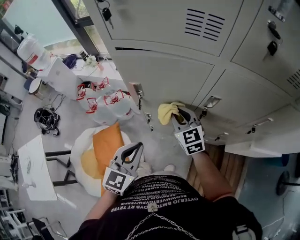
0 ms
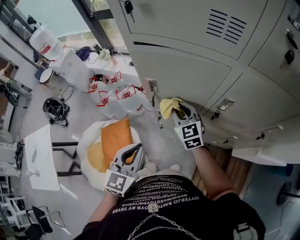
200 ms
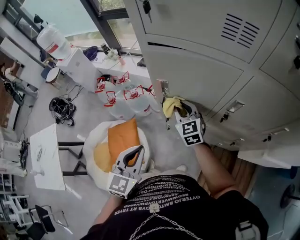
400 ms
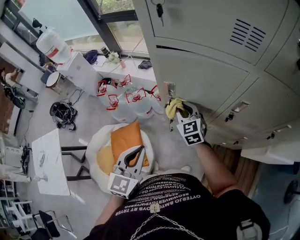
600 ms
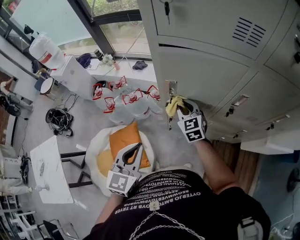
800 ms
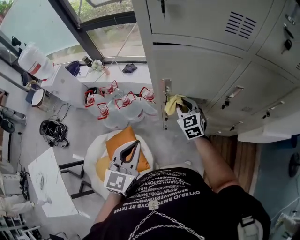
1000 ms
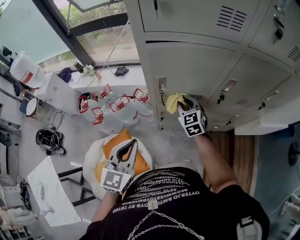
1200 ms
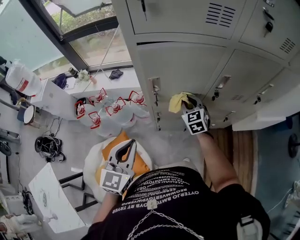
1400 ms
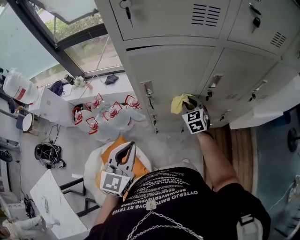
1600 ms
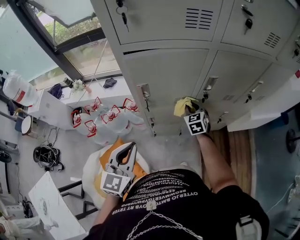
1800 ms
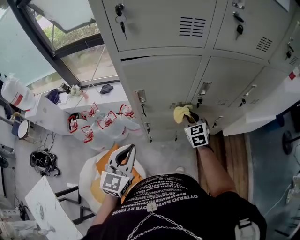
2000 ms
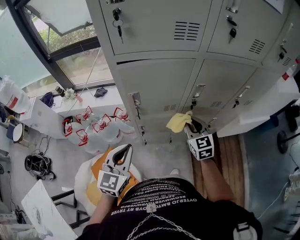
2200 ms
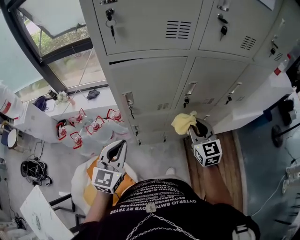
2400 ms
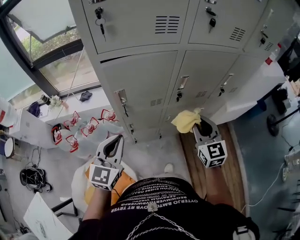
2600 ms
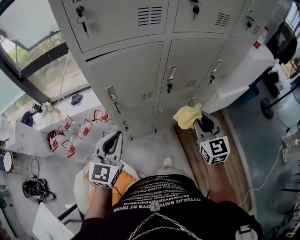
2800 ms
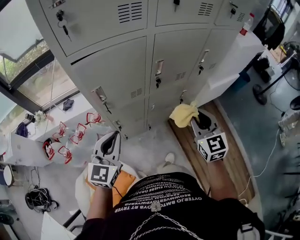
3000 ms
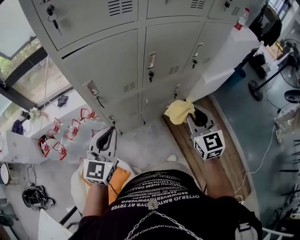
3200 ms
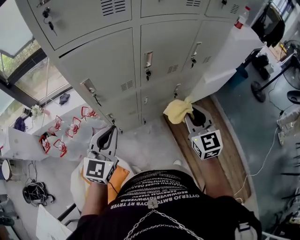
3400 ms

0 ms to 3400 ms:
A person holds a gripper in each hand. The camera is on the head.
0 ms to 1600 ms: The left gripper changes place by approximately 15 cm. The right gripper heads downward, covering approximately 5 cm, and swivels about 30 degrees.
1600 ms to 3400 ms: The left gripper goes about 10 cm to the right, and rotates roughly 20 degrees. The right gripper is displaced backward, to the right and upward by about 35 cm, and changes its angle by roughly 20 degrees.

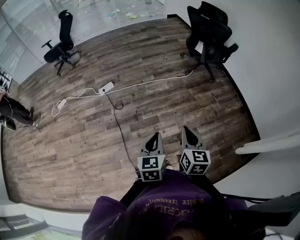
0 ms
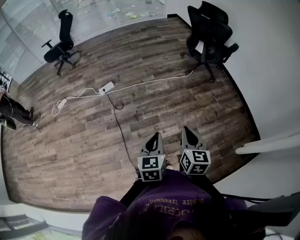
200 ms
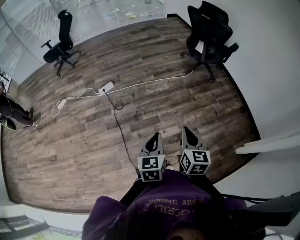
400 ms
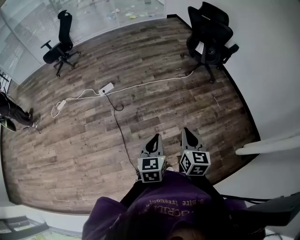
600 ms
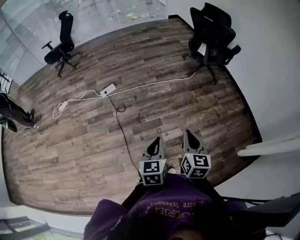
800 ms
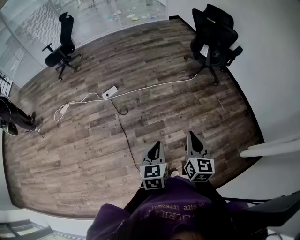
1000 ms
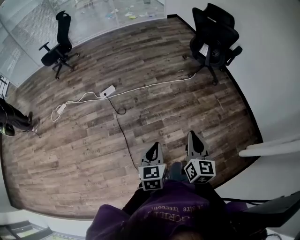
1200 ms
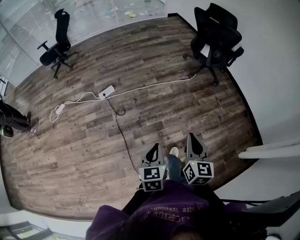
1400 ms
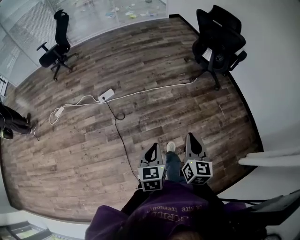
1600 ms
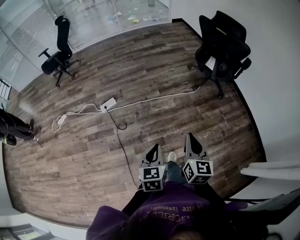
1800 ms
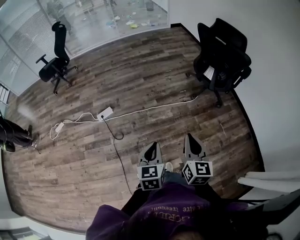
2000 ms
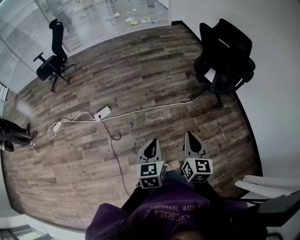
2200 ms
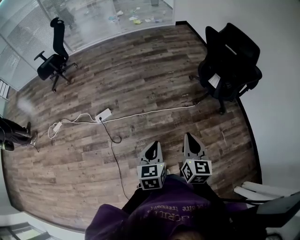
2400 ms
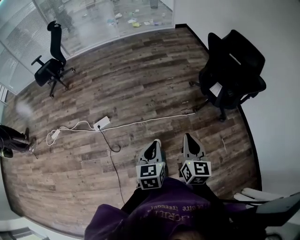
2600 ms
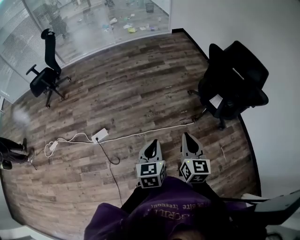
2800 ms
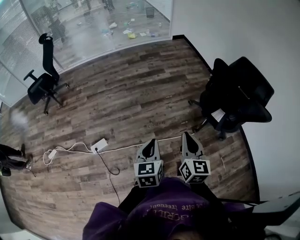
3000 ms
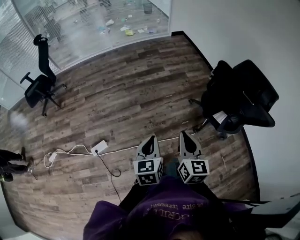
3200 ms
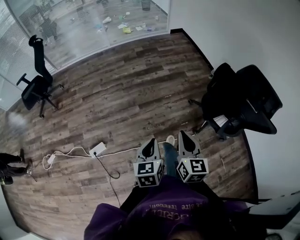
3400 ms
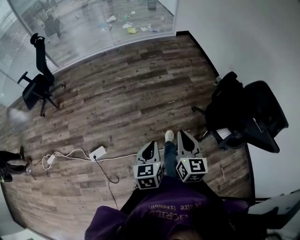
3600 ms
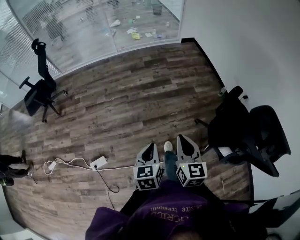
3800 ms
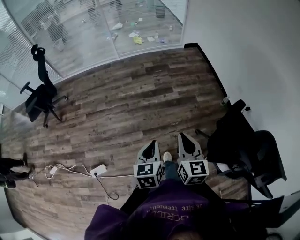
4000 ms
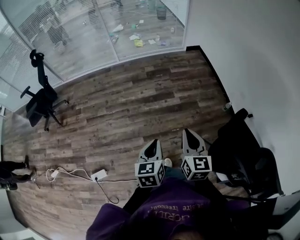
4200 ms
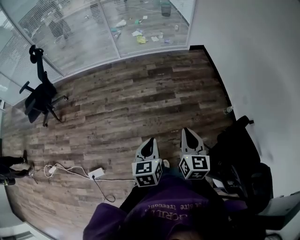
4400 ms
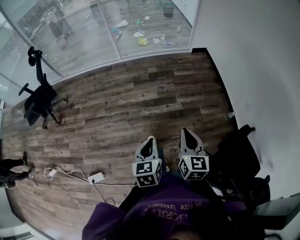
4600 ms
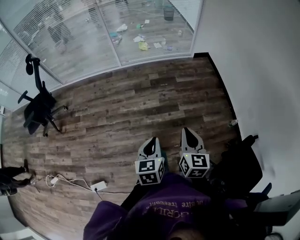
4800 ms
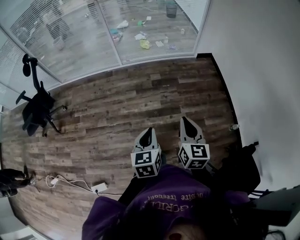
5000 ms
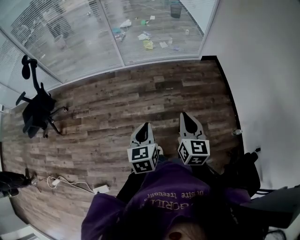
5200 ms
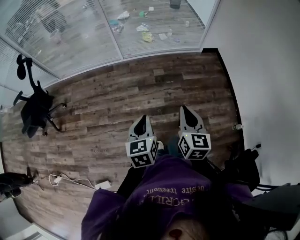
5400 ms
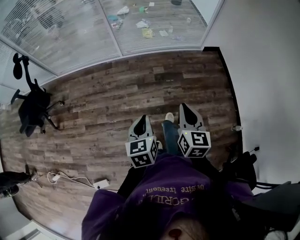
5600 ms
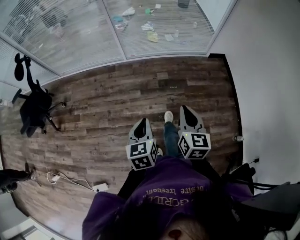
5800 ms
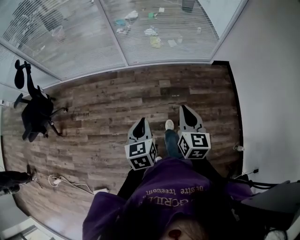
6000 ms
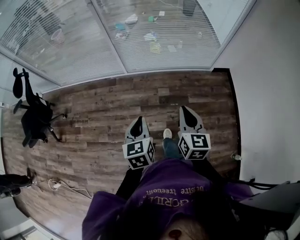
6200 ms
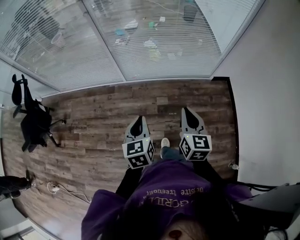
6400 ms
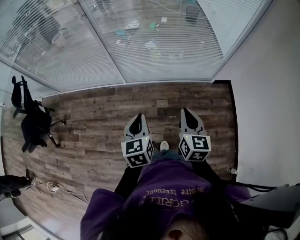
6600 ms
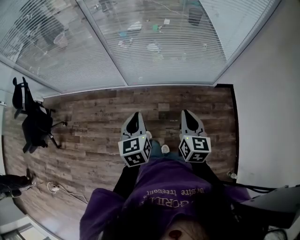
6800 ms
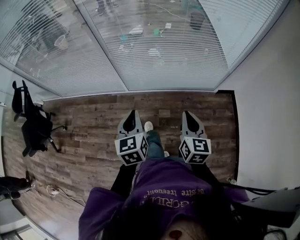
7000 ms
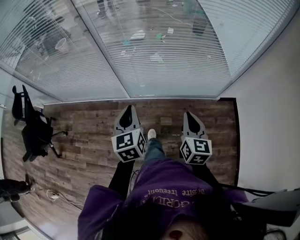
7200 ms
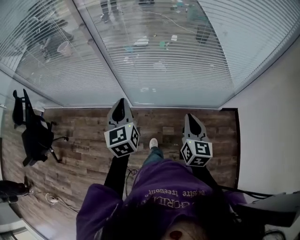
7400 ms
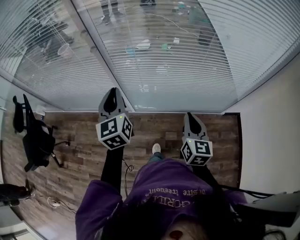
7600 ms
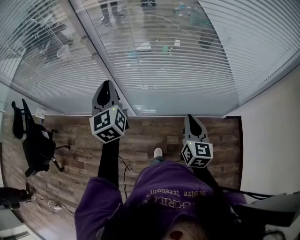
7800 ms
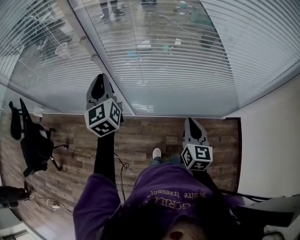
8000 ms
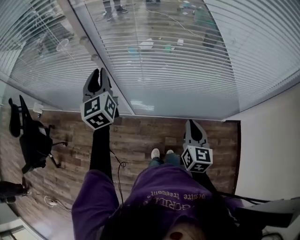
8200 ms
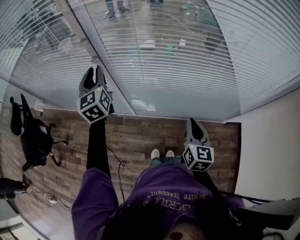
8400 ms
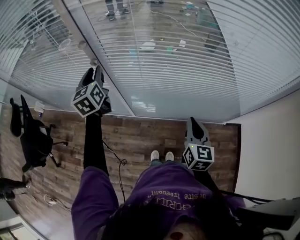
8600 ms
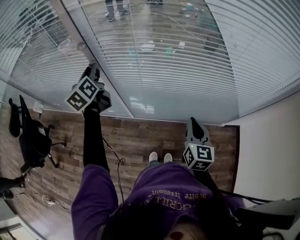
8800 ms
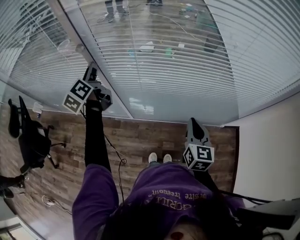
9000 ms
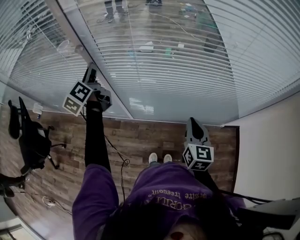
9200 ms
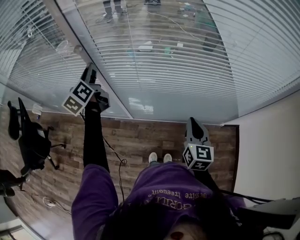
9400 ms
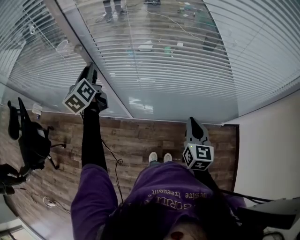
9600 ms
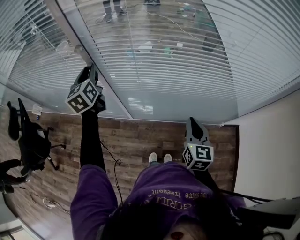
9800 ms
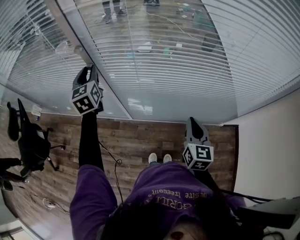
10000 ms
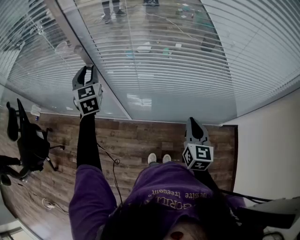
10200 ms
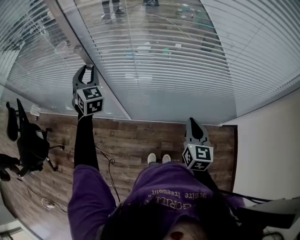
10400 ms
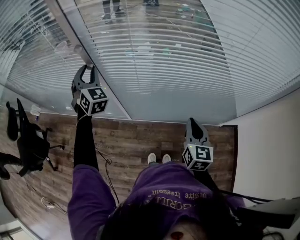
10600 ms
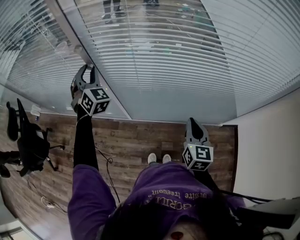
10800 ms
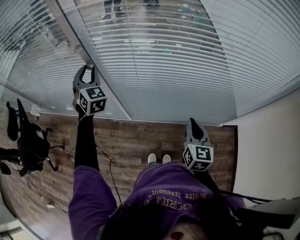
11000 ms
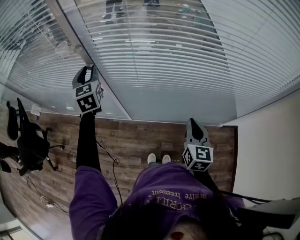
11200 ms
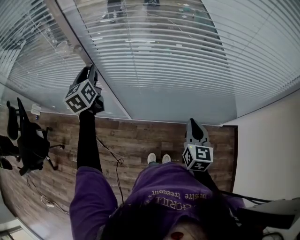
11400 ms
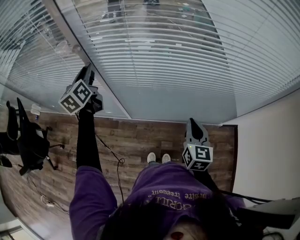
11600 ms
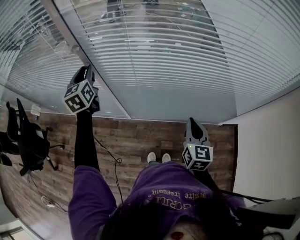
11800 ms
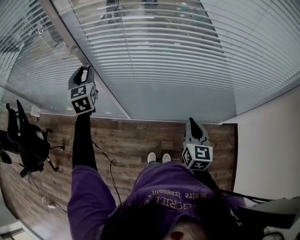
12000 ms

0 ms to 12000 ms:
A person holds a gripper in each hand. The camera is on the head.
0 ms to 1600 ms: The right gripper shifts some 15 cm forward. The left gripper is displaced forward, to the left and downward by approximately 15 cm.
1600 ms to 3000 ms: The pair of grippers is taken forward, approximately 60 cm.
3000 ms to 4400 ms: Both grippers are carried forward, some 60 cm.
4400 ms to 6000 ms: The pair of grippers is taken forward, about 60 cm.
6000 ms to 7600 ms: The pair of grippers is taken forward, some 50 cm. The left gripper swivels some 30 degrees.
7600 ms to 9000 ms: The right gripper is displaced forward by some 10 cm; the left gripper moves forward and to the left, approximately 25 cm, rotates some 40 degrees, and opens up.
9000 ms to 10400 ms: The left gripper rotates around the line of its fingers by roughly 70 degrees, clockwise from behind.

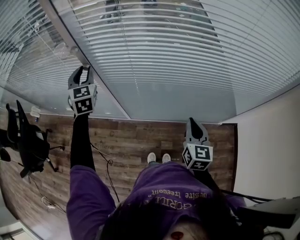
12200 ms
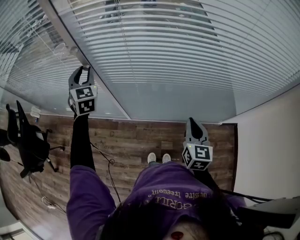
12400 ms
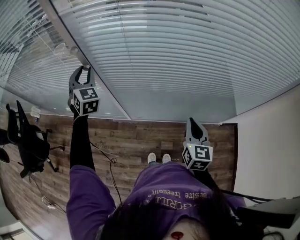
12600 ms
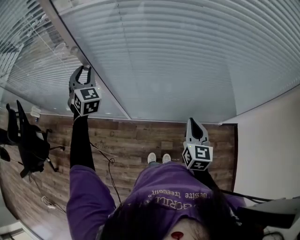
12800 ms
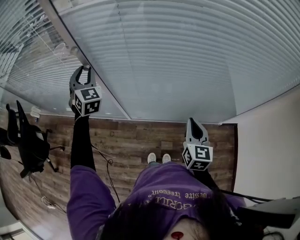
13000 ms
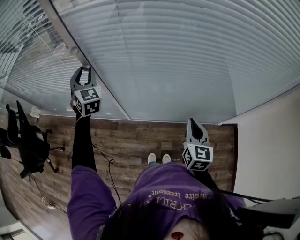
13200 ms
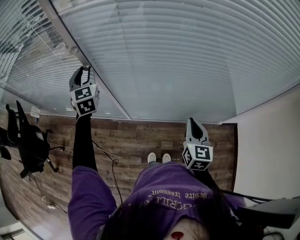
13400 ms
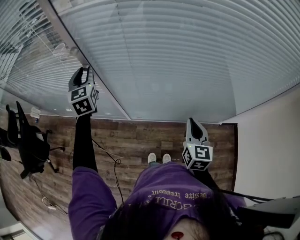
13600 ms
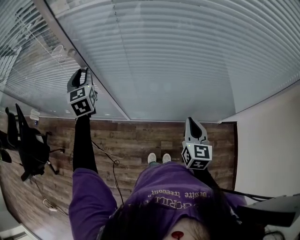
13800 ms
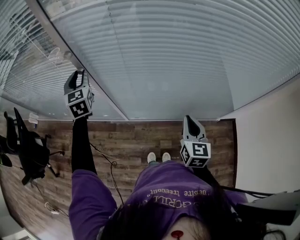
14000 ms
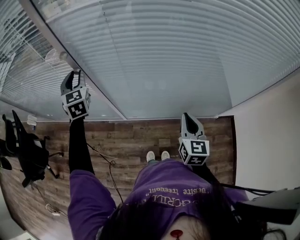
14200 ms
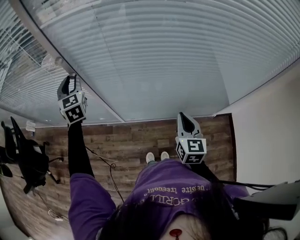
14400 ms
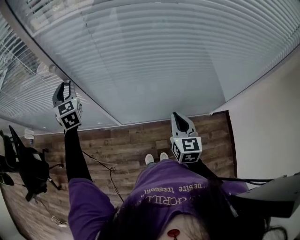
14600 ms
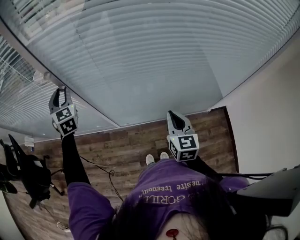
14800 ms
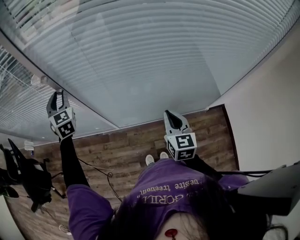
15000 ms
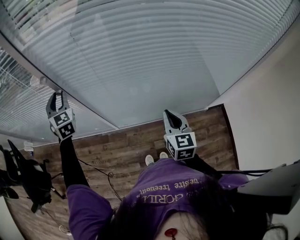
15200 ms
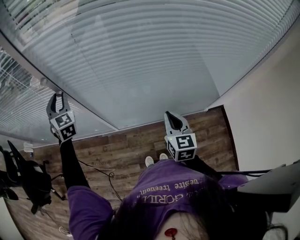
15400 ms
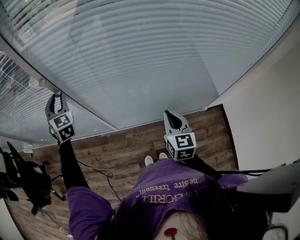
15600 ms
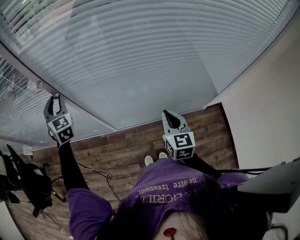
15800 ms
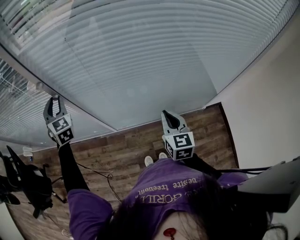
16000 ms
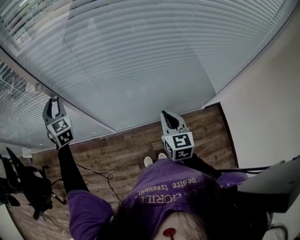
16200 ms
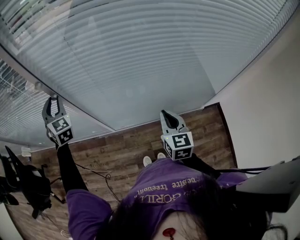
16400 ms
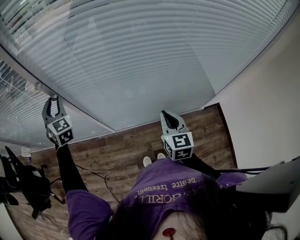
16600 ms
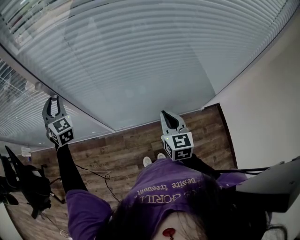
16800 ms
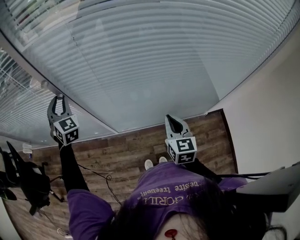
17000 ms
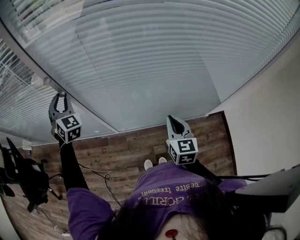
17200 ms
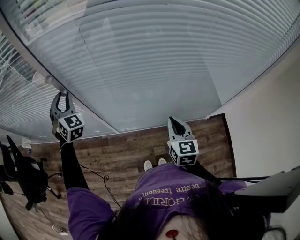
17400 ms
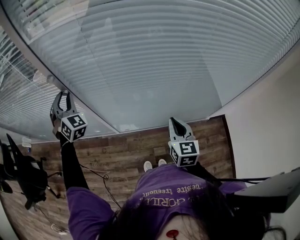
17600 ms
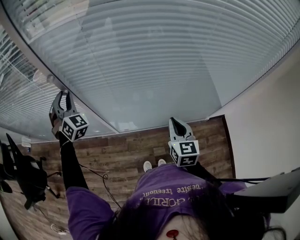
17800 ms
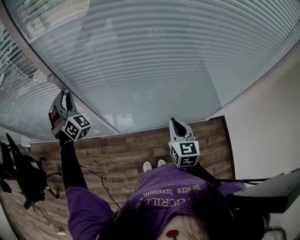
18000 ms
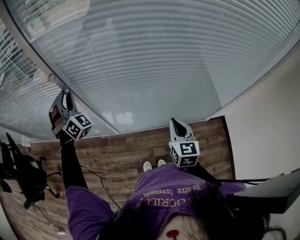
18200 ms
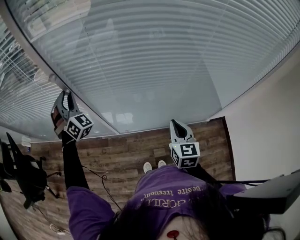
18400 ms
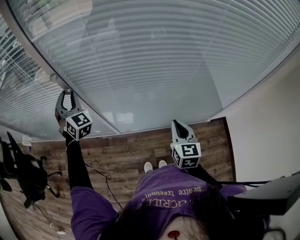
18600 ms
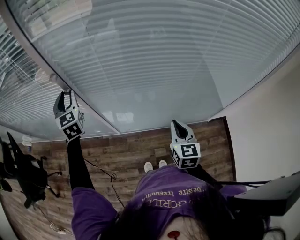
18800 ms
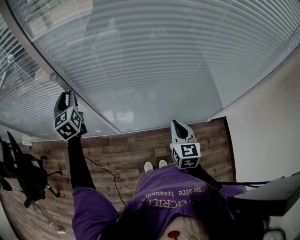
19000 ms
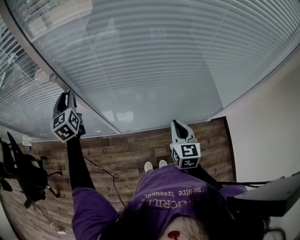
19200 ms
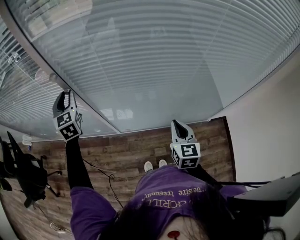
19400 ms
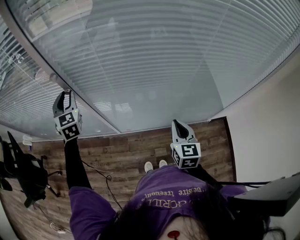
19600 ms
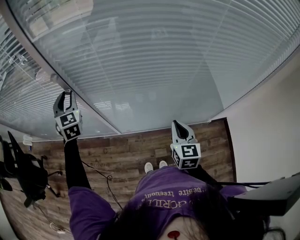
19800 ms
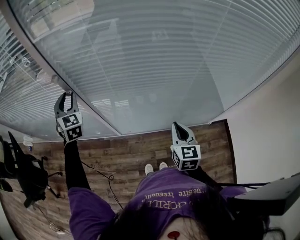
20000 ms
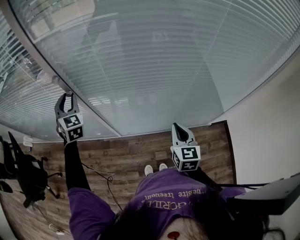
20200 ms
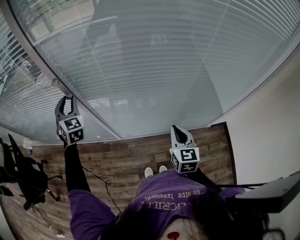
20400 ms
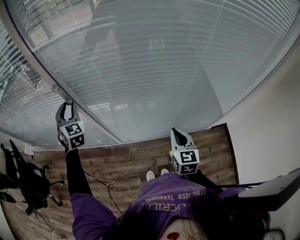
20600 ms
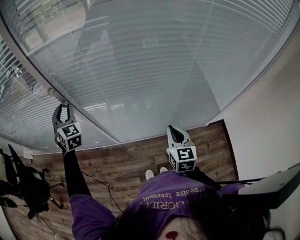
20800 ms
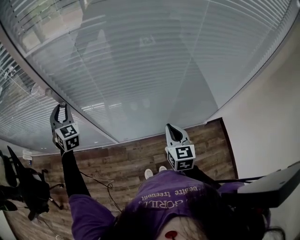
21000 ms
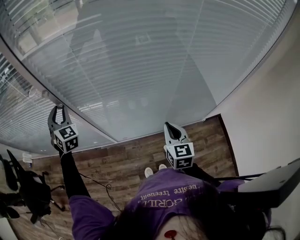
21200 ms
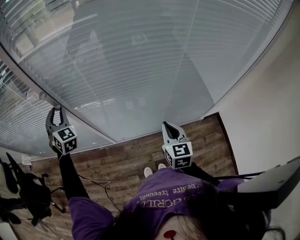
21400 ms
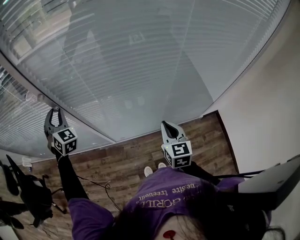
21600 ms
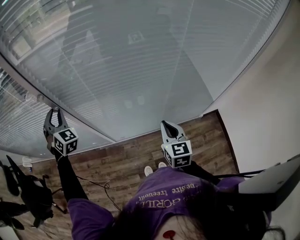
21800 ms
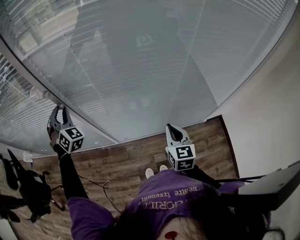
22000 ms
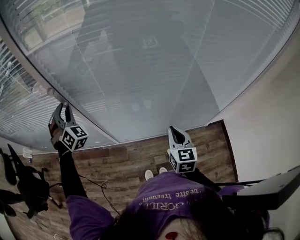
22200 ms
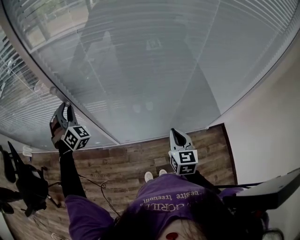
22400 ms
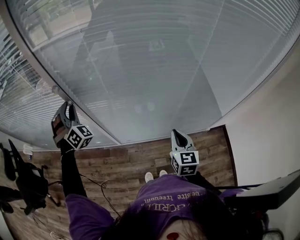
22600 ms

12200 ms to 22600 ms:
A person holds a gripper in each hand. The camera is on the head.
12200 ms to 16600 ms: The grippers stay close to where they were, moving slightly.
16600 ms to 18200 ms: The left gripper rotates about 30 degrees.
18200 ms to 19600 ms: The left gripper rolls counterclockwise, seen from behind, by approximately 50 degrees.
19600 ms to 21200 ms: There are only small adjustments of the grippers.
21200 ms to 22600 ms: The left gripper swivels some 30 degrees.
